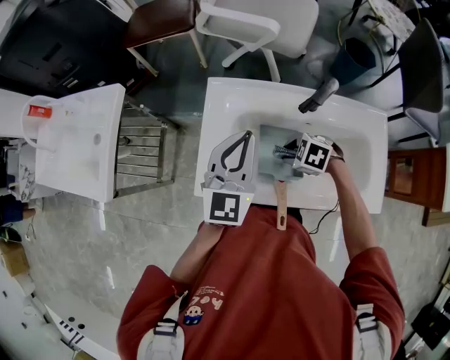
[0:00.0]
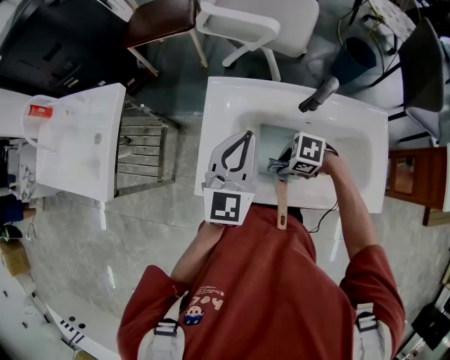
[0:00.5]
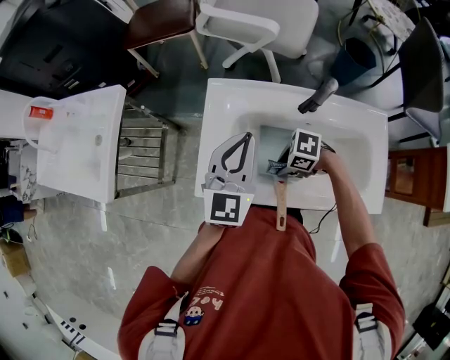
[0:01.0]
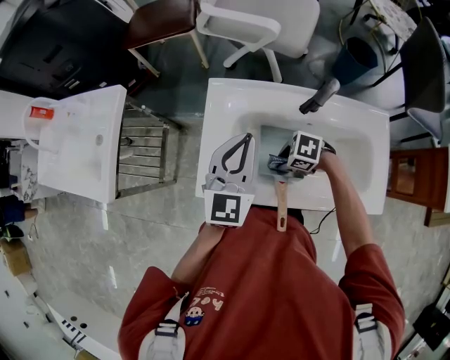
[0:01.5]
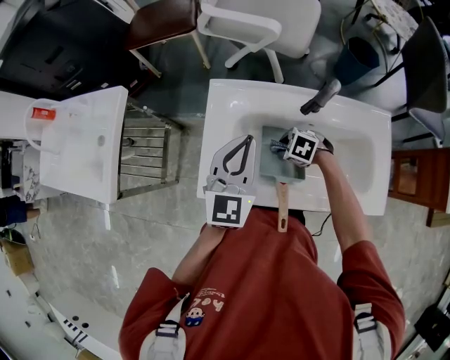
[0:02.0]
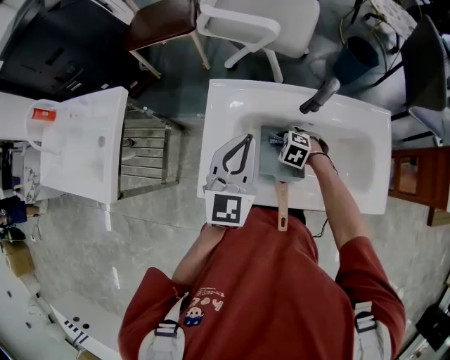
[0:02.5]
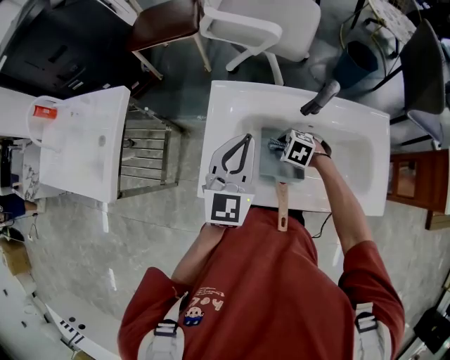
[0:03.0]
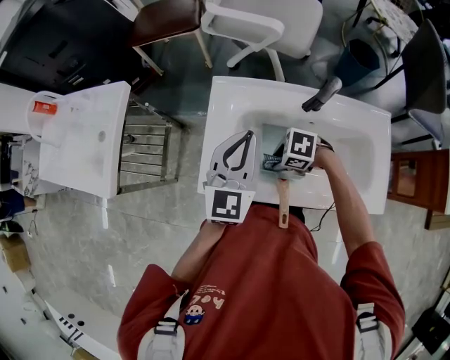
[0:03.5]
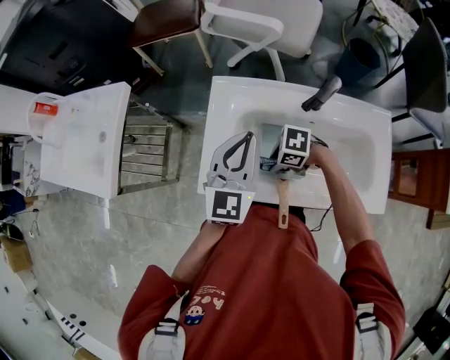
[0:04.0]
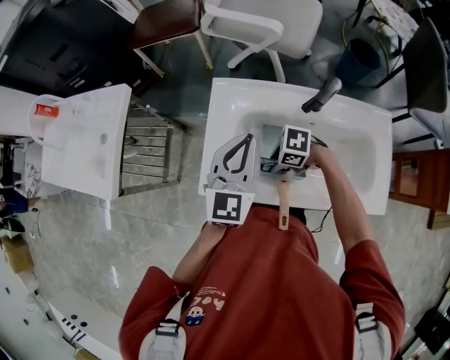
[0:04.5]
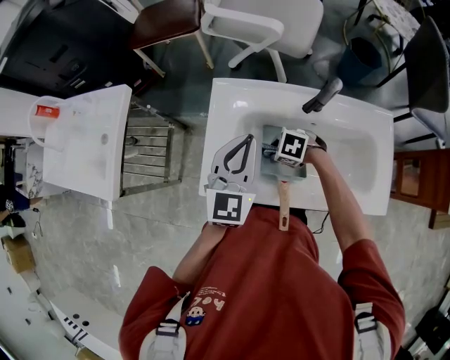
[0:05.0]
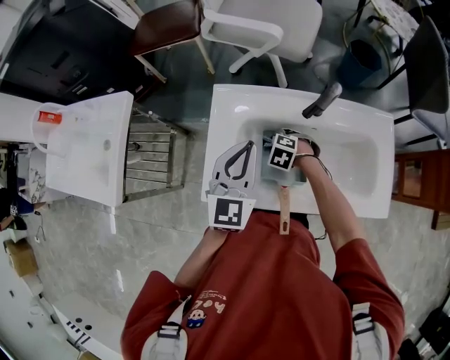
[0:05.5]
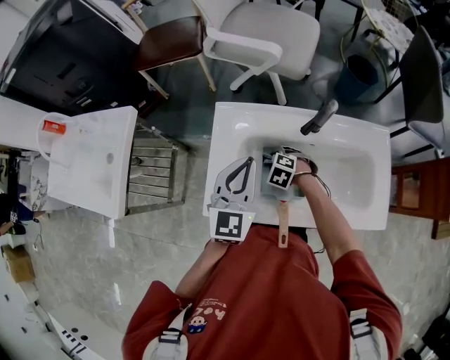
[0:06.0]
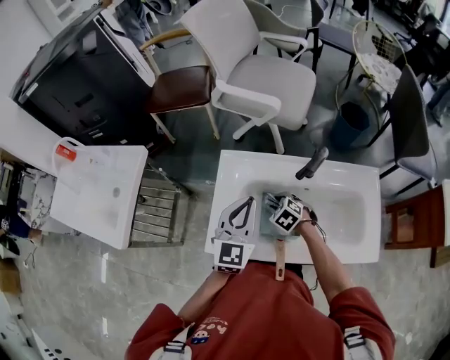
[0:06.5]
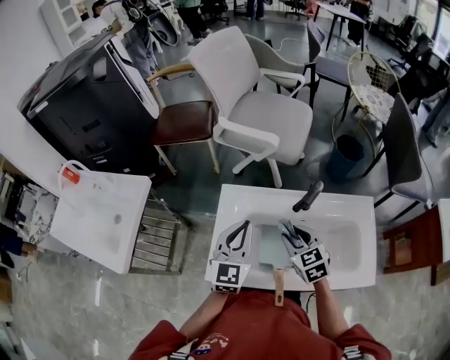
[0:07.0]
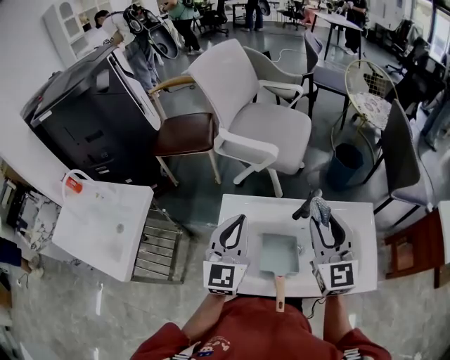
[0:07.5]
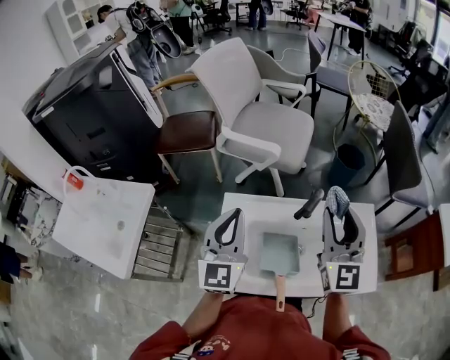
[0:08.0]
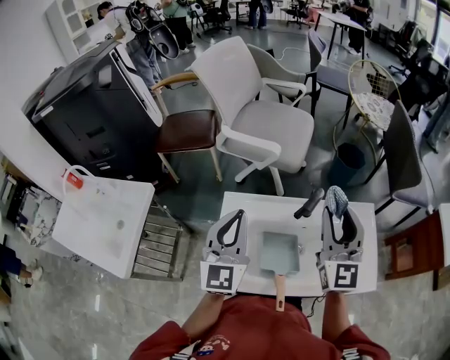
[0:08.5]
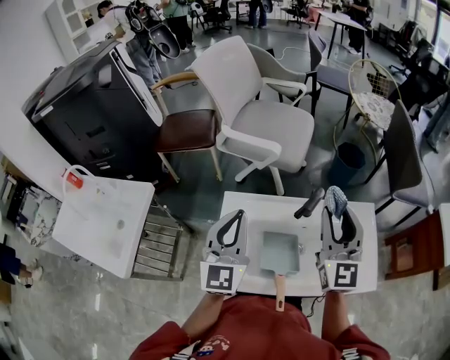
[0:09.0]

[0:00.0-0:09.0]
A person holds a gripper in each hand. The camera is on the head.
0:00.0 to 0:02.0: The right gripper moves downward, roughly 5 cm.
0:02.0 to 0:04.5: The right gripper changes place by roughly 10 cm, and changes its angle by approximately 20 degrees.
0:04.5 to 0:07.0: The right gripper shifts roughly 15 cm upward, and rotates about 70 degrees.
0:07.0 to 0:09.0: The right gripper travels upward by roughly 20 cm, and tips its fingers upward by some 40 degrees, while the left gripper goes some 10 cm upward.

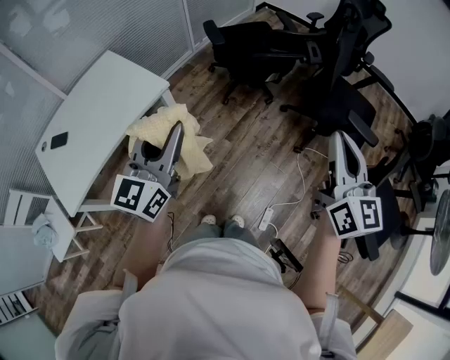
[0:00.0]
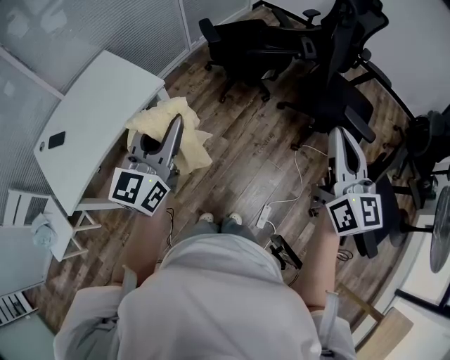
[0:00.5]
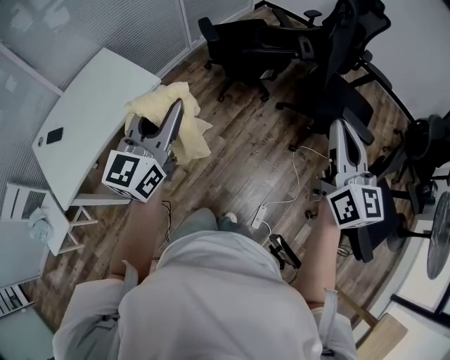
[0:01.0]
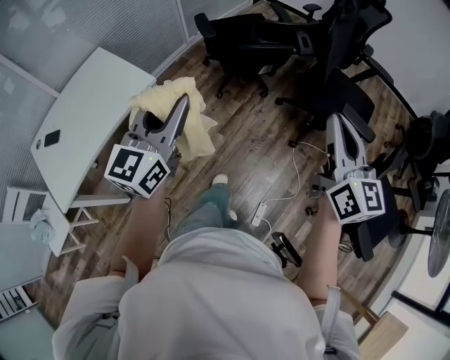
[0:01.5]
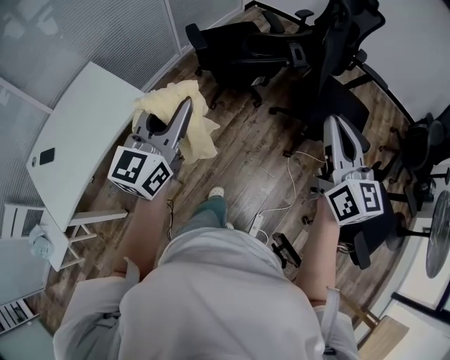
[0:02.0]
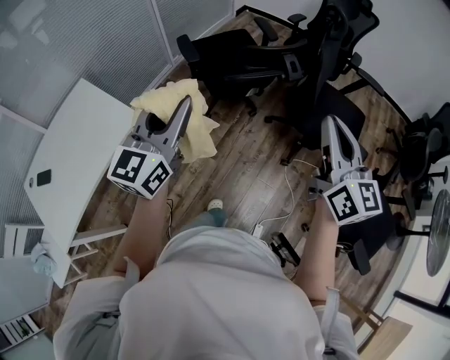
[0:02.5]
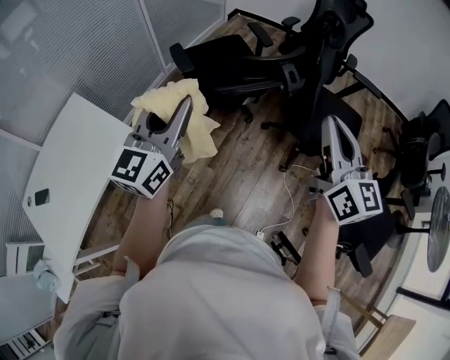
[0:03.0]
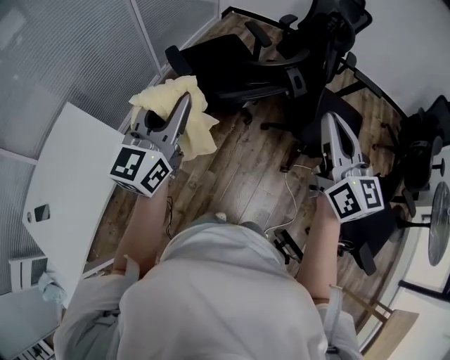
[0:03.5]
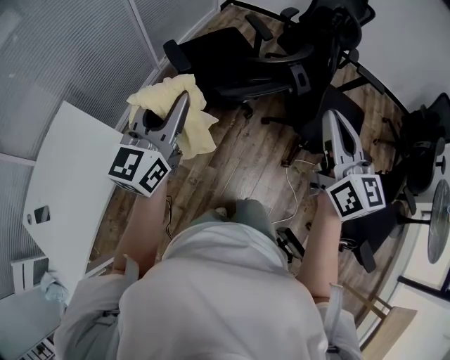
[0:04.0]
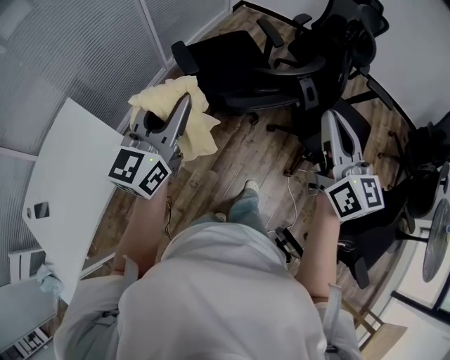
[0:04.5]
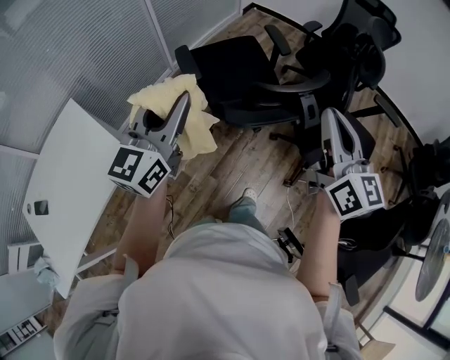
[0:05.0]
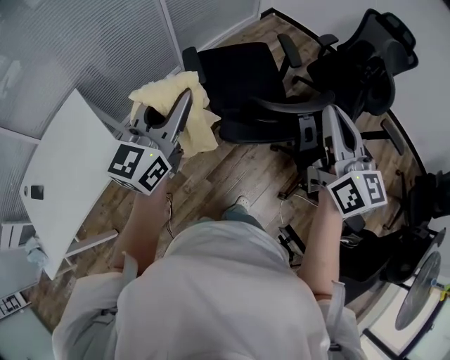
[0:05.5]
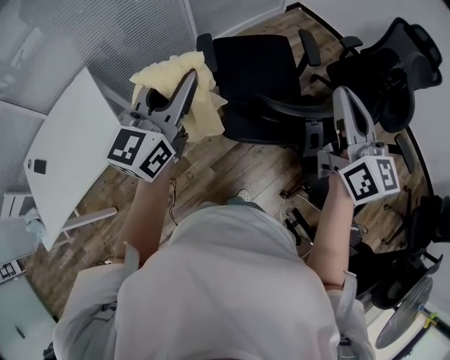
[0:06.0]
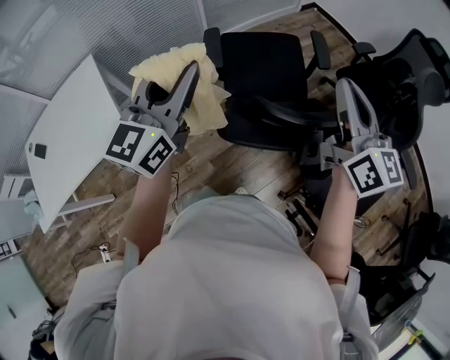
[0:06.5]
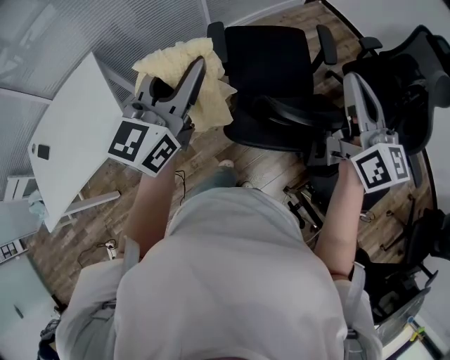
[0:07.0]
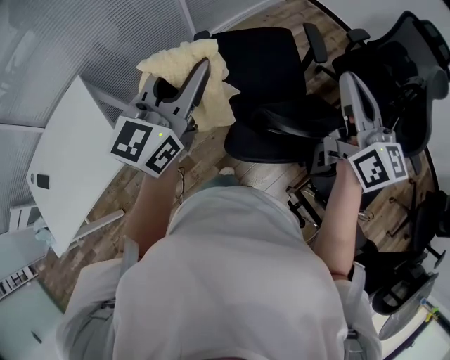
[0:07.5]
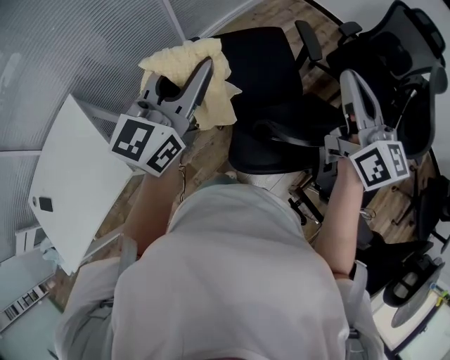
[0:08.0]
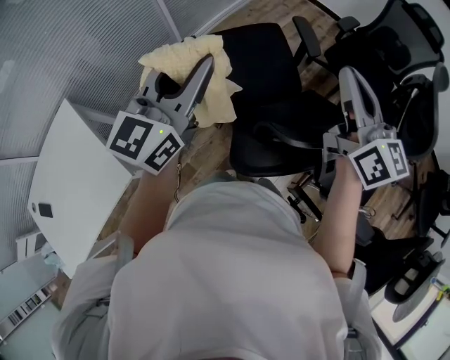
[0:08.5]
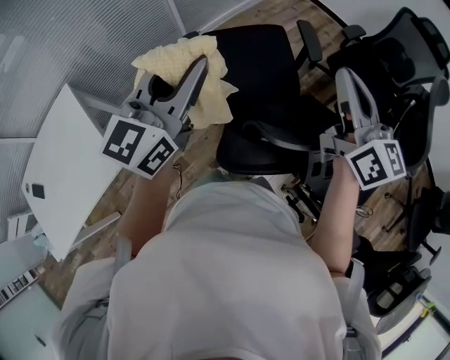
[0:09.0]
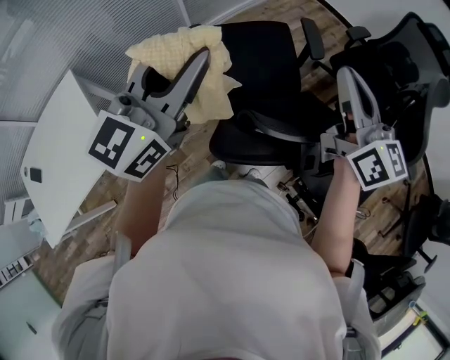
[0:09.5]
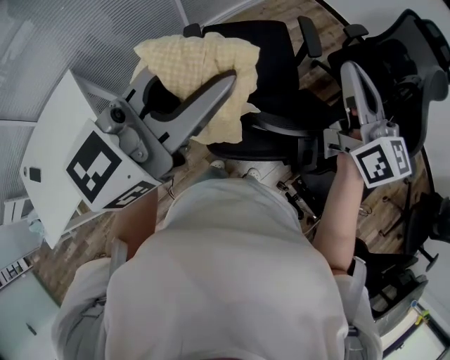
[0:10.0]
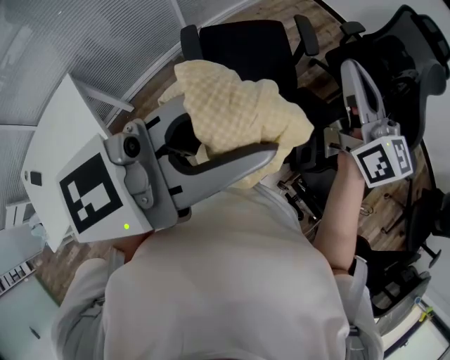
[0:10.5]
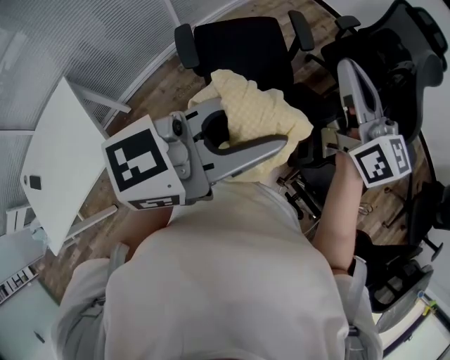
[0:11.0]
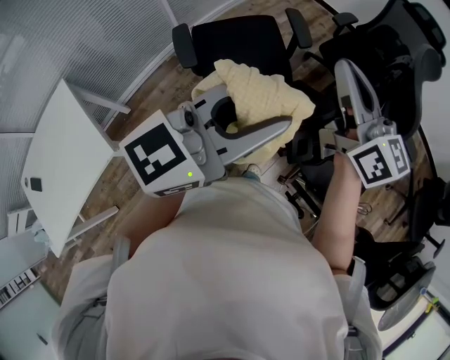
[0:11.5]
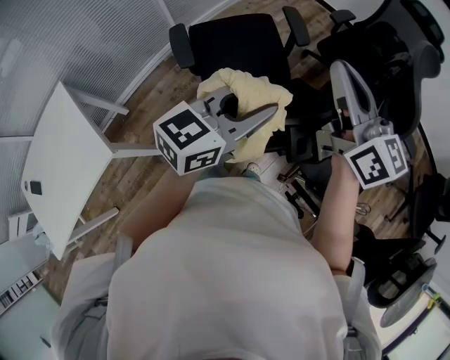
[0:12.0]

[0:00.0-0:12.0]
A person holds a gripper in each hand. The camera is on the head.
0:00.0 to 0:02.0: The two grippers go approximately 10 cm forward and to the right.
0:02.0 to 0:04.0: Both grippers move forward, roughly 20 cm.
0:04.0 to 0:06.0: The left gripper travels forward by about 15 cm. Meanwhile the right gripper heads forward, covering some 30 cm, and swivels approximately 20 degrees.
0:06.0 to 0:08.0: The two grippers go about 15 cm forward.
0:08.0 to 0:10.0: The left gripper heads to the right, backward and upward, covering approximately 15 cm.
0:10.0 to 0:12.0: The left gripper travels downward and to the right by some 20 cm, and turns by some 20 degrees.

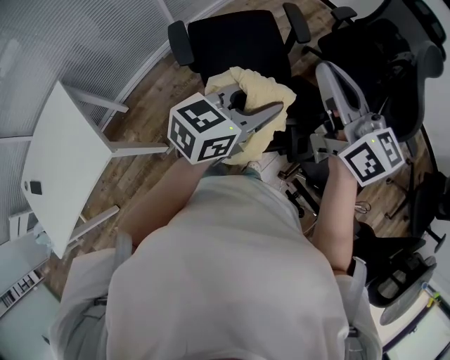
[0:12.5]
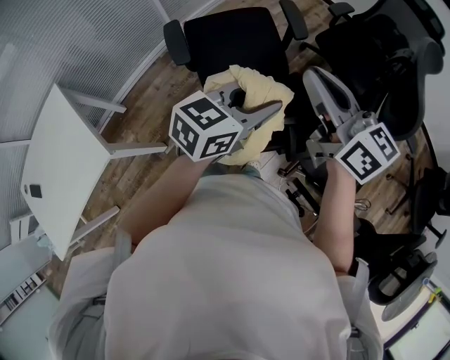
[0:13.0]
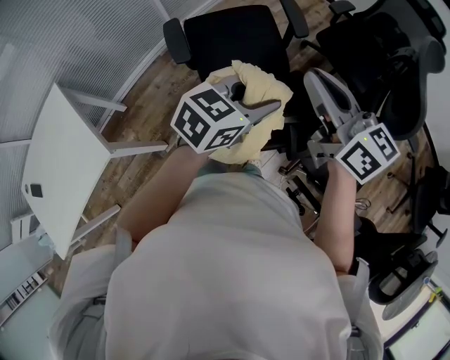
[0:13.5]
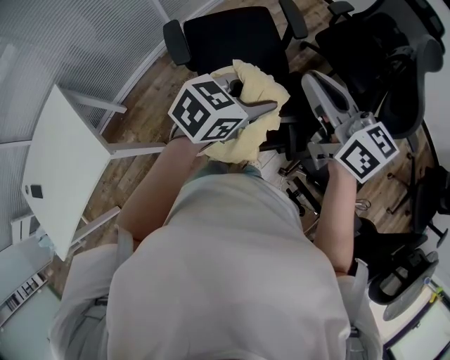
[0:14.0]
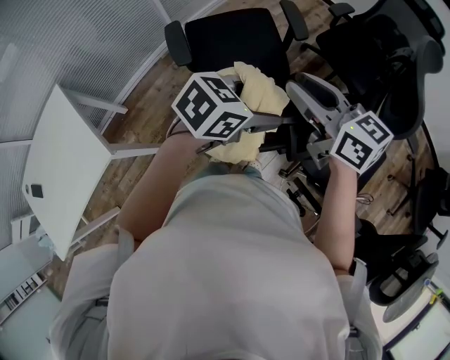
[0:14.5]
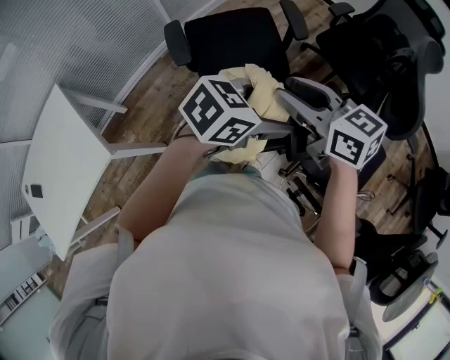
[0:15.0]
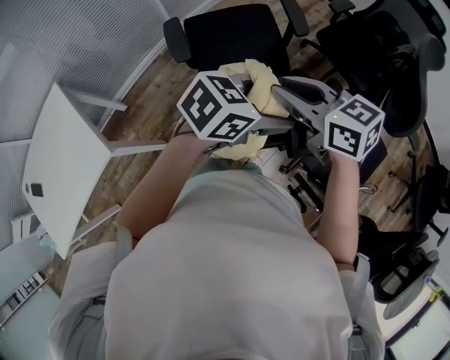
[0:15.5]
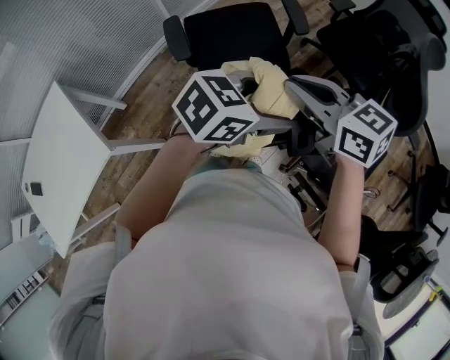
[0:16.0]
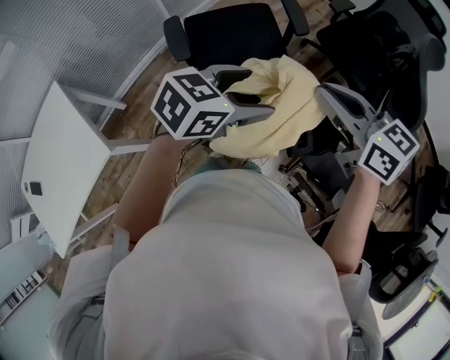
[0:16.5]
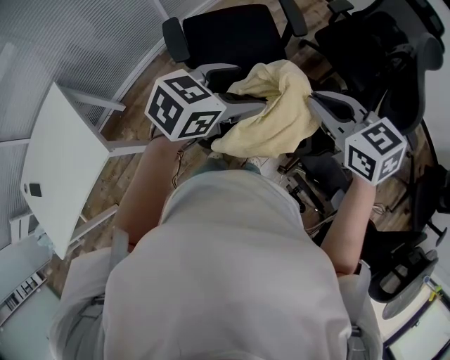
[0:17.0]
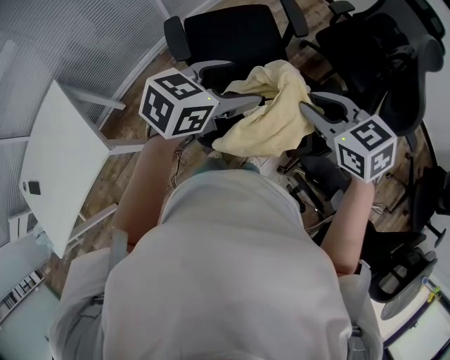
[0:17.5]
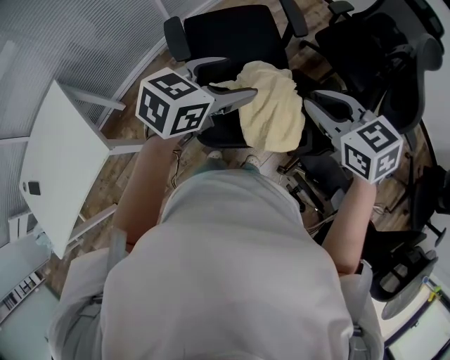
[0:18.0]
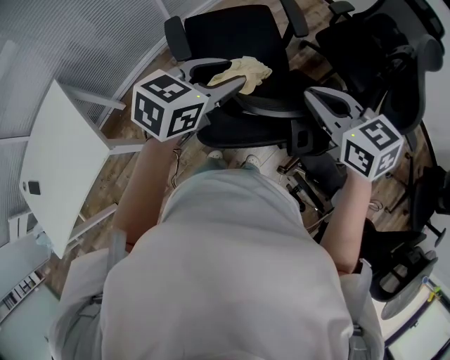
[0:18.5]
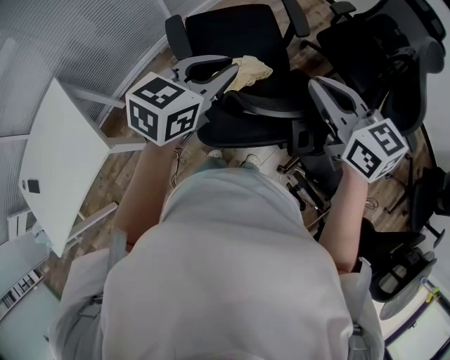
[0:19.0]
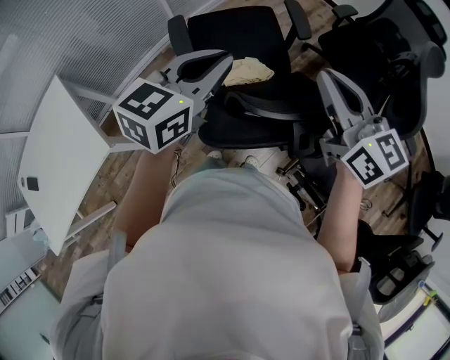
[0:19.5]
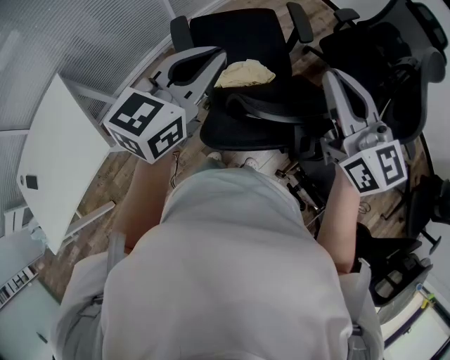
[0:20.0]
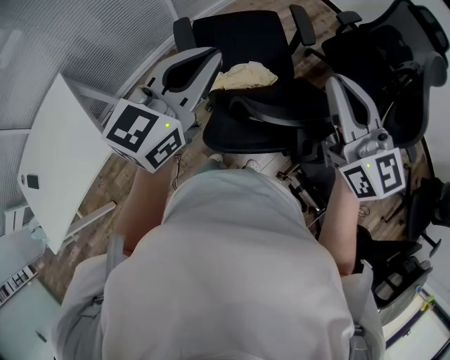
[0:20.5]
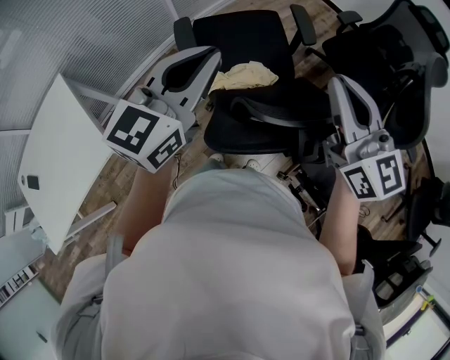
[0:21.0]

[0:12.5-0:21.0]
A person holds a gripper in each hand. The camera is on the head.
0:12.5 to 0:14.5: The left gripper changes its angle by about 20 degrees, and opens up, while the right gripper heads downward, covering about 5 cm, and opens.
0:14.5 to 0:16.5: The right gripper closes.
0:16.5 to 0:19.0: The left gripper travels to the left by about 5 cm, turns by approximately 20 degrees, and closes.
0:19.0 to 0:21.0: The left gripper shifts about 10 cm upward and to the left, and rotates some 20 degrees. The right gripper shifts approximately 5 cm upward, and rotates some 20 degrees.
